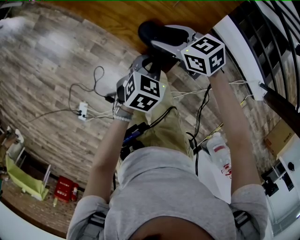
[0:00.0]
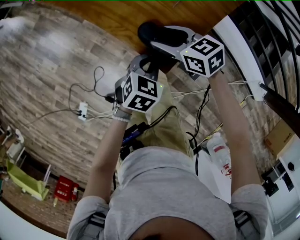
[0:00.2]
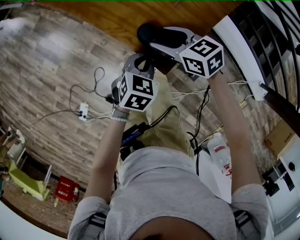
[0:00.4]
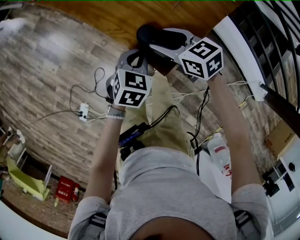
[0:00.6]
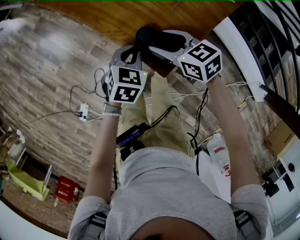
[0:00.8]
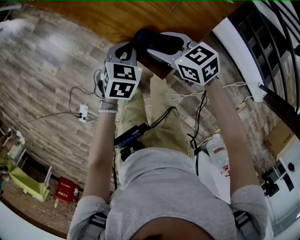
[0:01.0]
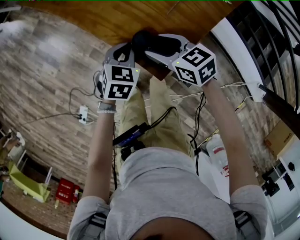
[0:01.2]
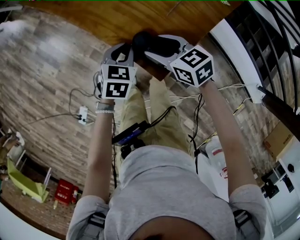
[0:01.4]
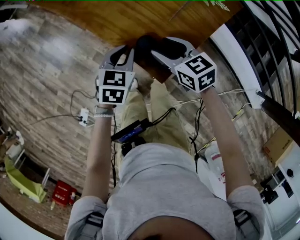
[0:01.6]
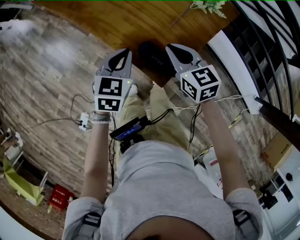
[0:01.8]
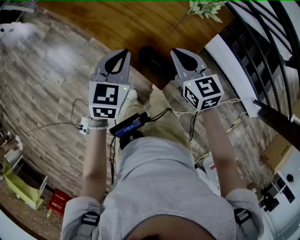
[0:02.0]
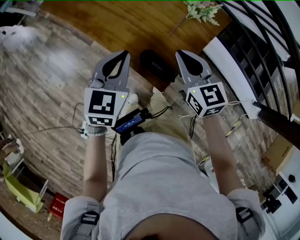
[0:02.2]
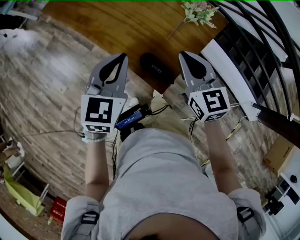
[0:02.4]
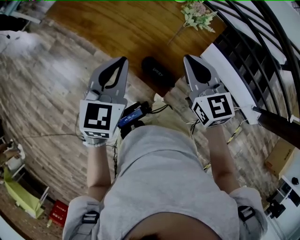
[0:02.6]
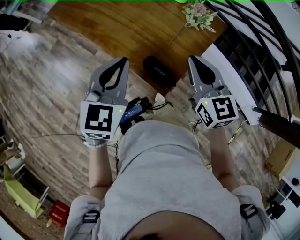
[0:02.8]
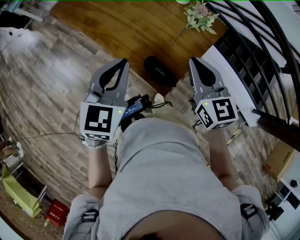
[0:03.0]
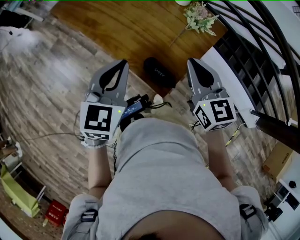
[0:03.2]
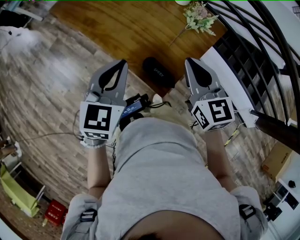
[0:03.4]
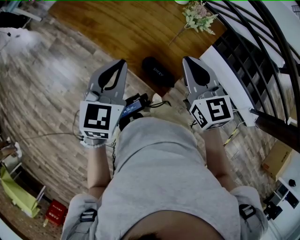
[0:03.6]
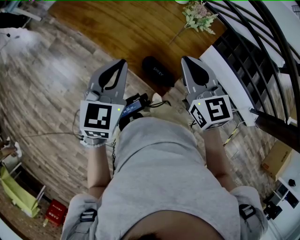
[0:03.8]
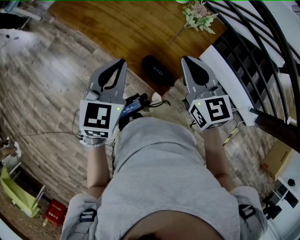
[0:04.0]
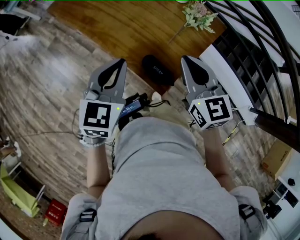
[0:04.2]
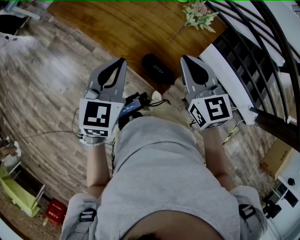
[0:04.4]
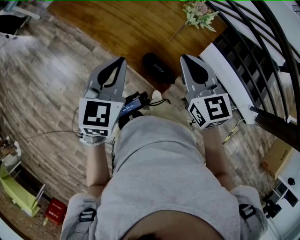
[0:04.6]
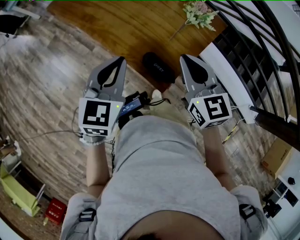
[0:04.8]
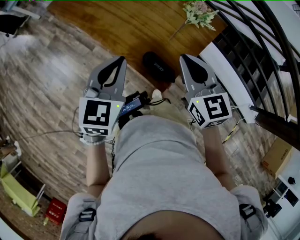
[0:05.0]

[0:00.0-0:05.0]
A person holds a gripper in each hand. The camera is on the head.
0:00.0 to 0:01.6: The left gripper moves forward and to the left, some 10 cm.
0:01.6 to 0:03.4: Both grippers move upward, some 20 cm. The left gripper swivels approximately 20 degrees. Meanwhile the right gripper changes its angle by about 30 degrees, and closes its fingers.
0:03.4 to 0:05.0: There are only small adjustments of the grippers.

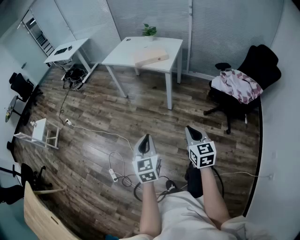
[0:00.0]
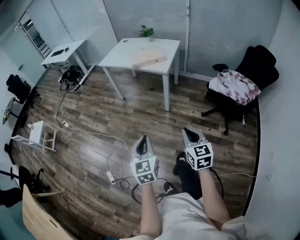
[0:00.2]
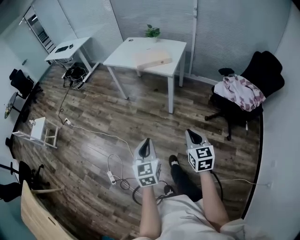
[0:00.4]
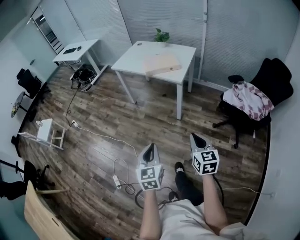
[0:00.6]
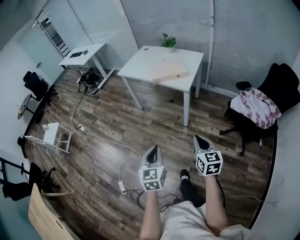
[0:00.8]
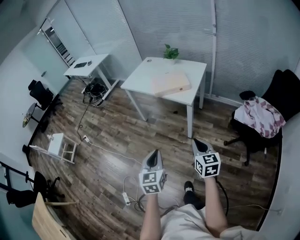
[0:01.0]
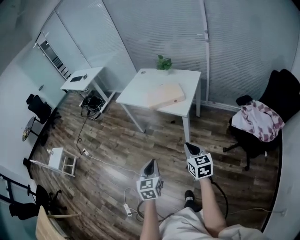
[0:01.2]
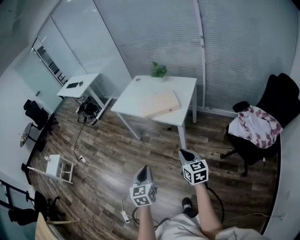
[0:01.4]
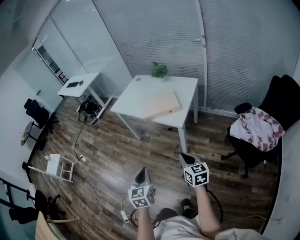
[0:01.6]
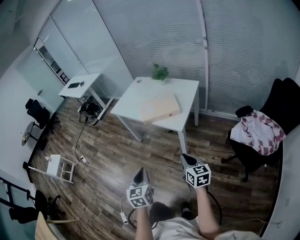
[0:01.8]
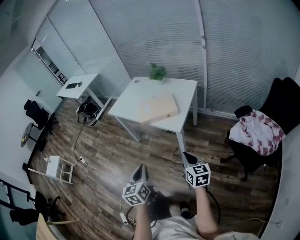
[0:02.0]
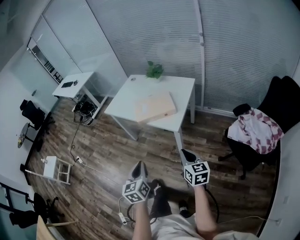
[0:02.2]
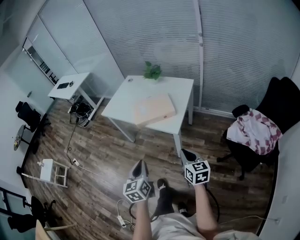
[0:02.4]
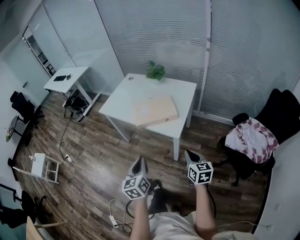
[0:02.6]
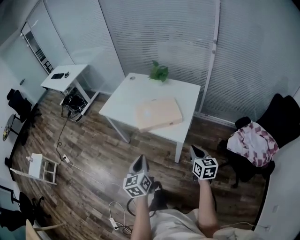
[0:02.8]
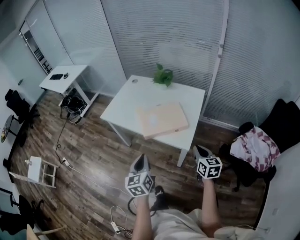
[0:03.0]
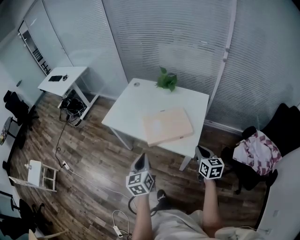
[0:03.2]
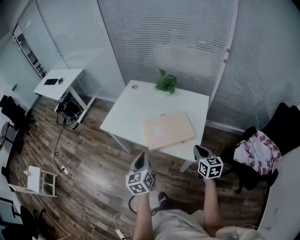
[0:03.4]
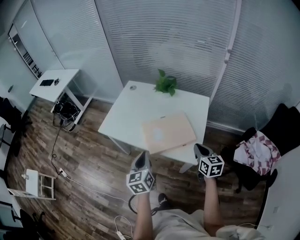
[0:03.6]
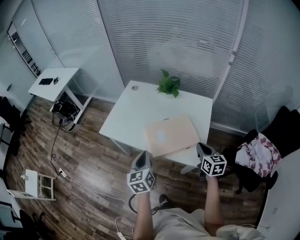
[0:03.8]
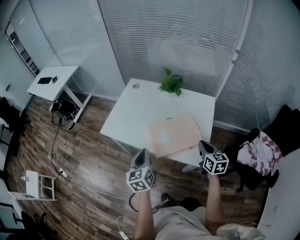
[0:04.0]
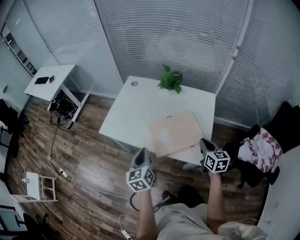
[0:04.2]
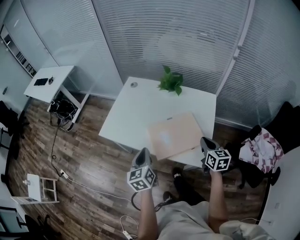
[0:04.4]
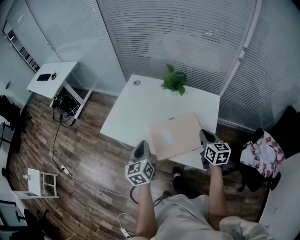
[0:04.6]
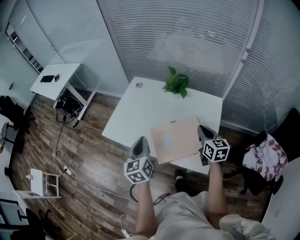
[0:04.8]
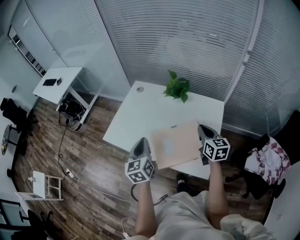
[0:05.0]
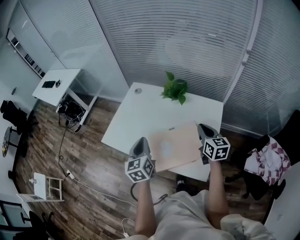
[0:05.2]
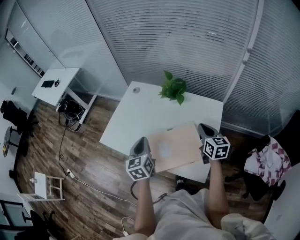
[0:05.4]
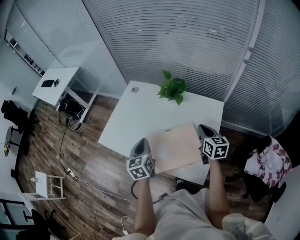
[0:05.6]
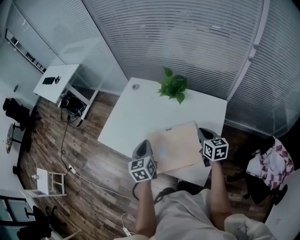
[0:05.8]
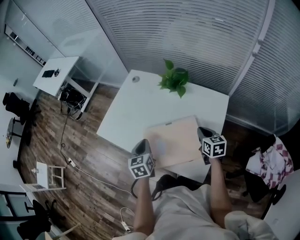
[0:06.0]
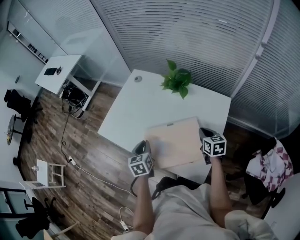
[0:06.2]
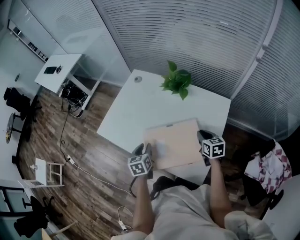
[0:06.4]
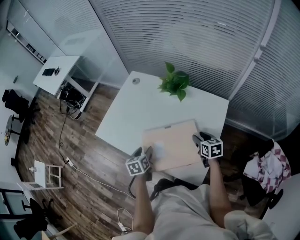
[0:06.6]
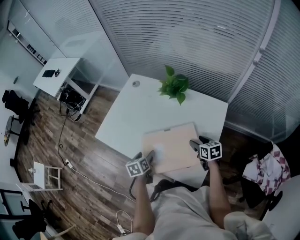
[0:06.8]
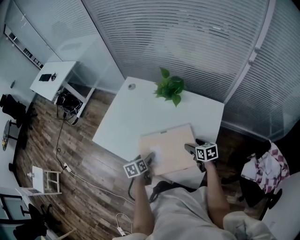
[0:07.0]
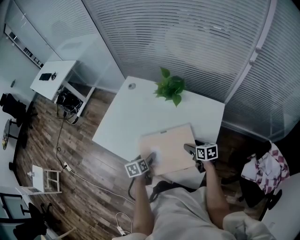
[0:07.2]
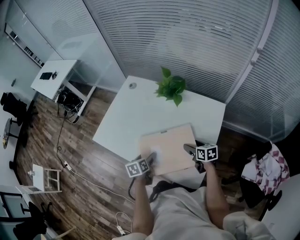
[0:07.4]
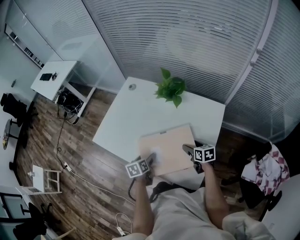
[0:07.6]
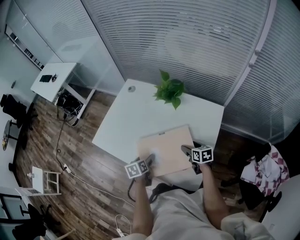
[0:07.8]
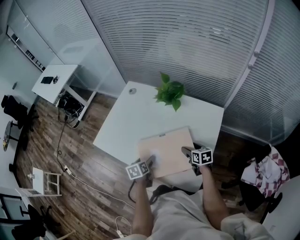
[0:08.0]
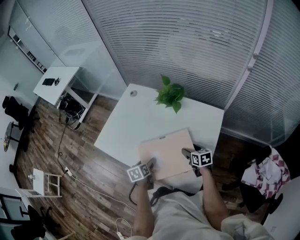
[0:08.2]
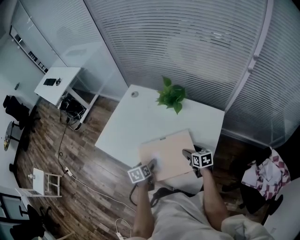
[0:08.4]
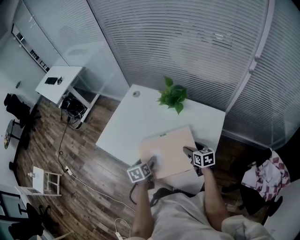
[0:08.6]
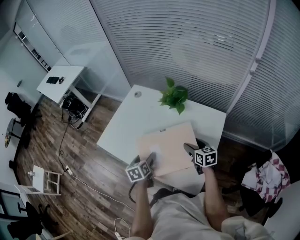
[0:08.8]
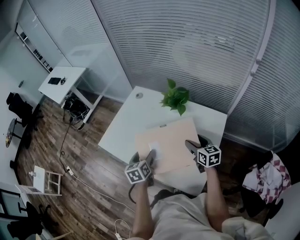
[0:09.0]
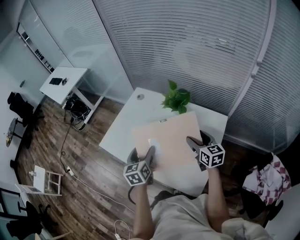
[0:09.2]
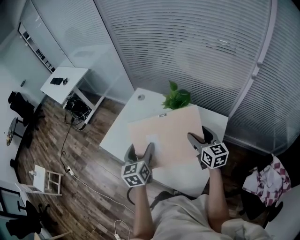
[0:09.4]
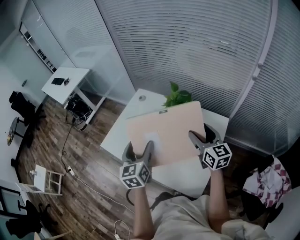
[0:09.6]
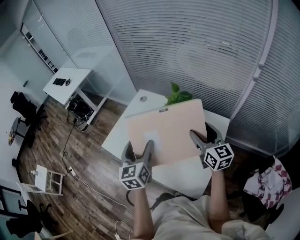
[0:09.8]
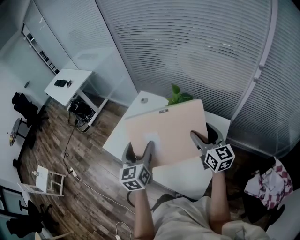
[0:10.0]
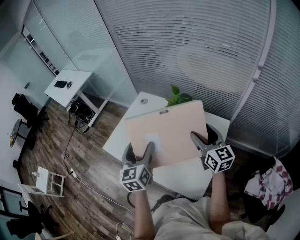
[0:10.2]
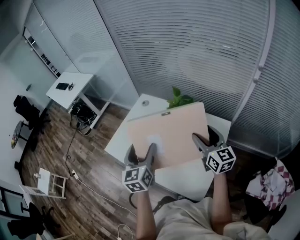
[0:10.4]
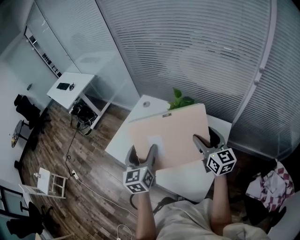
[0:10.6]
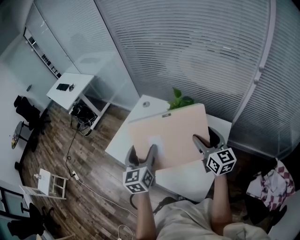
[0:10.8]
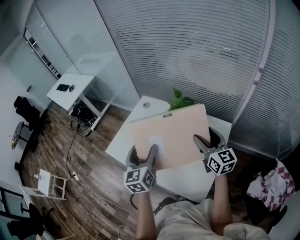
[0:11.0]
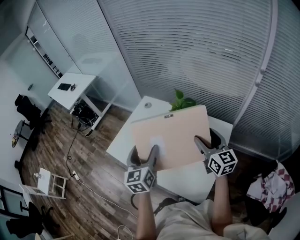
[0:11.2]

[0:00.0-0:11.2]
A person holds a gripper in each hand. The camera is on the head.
0:00.0 to 0:01.6: The grippers both shift forward by roughly 30 cm.
0:01.6 to 0:03.2: Both grippers move forward, about 30 cm.
0:03.2 to 0:04.8: The two grippers go some 25 cm forward.
0:04.8 to 0:06.4: The left gripper goes some 20 cm downward, rotates roughly 20 degrees, and opens up; the right gripper goes some 20 cm downward, to the right and forward.
0:06.4 to 0:08.0: The grippers both shift downward by about 5 cm. The right gripper opens its fingers. The left gripper opens its fingers.
0:08.0 to 0:09.6: Both grippers move upward, about 25 cm. The left gripper points its fingers approximately 30 degrees further upward; the right gripper tilts its fingers about 30 degrees upward.
0:09.6 to 0:11.2: There are only small adjustments of the grippers.

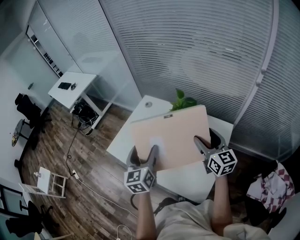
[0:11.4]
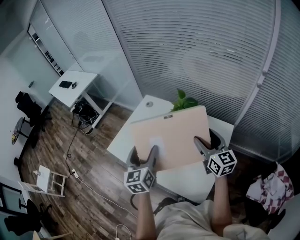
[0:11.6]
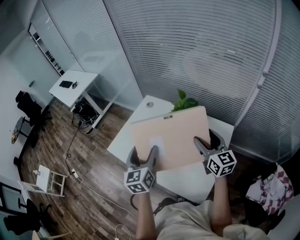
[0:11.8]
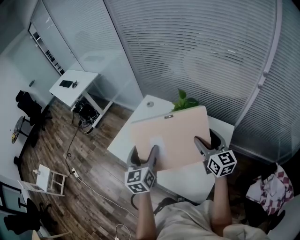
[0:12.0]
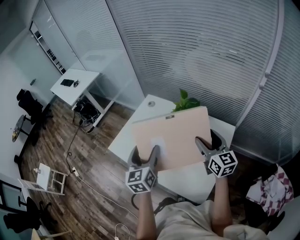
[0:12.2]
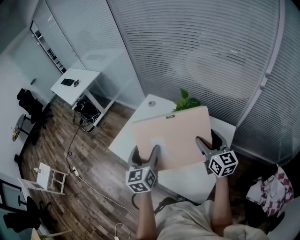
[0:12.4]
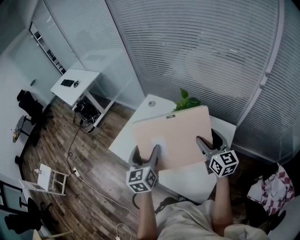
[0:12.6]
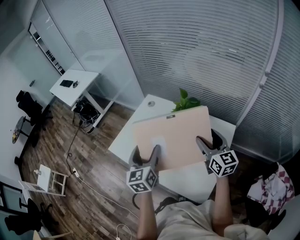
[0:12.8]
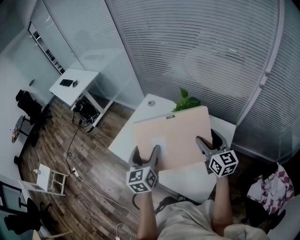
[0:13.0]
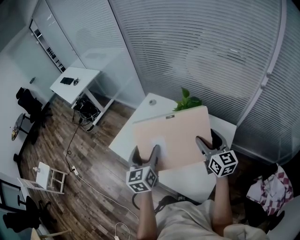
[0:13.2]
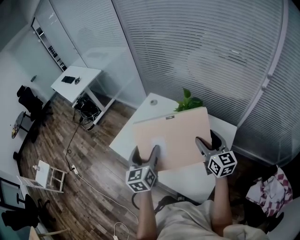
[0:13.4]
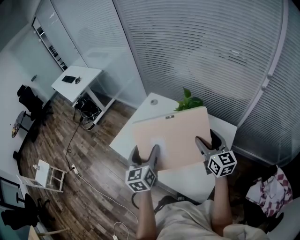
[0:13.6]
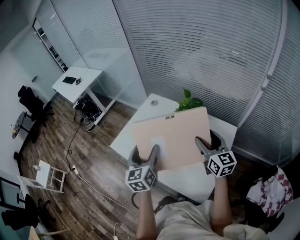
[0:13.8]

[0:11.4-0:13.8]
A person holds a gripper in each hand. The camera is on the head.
0:11.4 to 0:12.6: Both grippers stay put.
0:12.6 to 0:13.8: The grippers make only small movements.

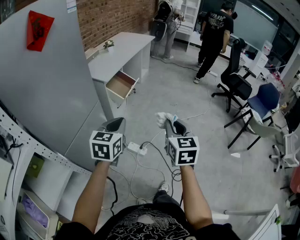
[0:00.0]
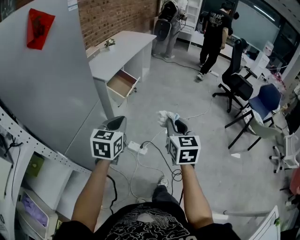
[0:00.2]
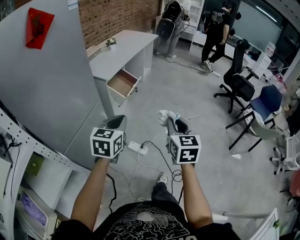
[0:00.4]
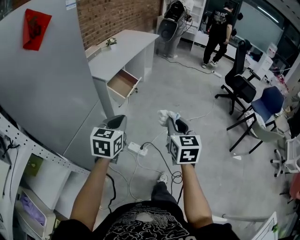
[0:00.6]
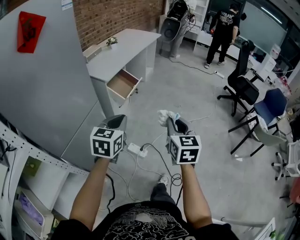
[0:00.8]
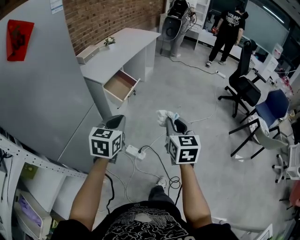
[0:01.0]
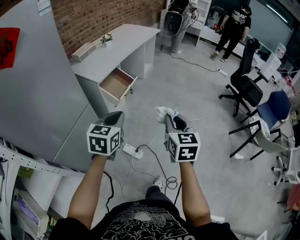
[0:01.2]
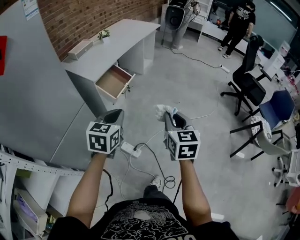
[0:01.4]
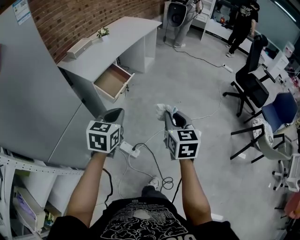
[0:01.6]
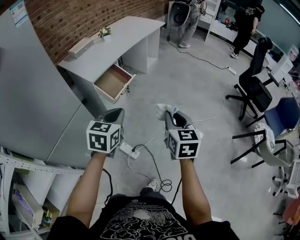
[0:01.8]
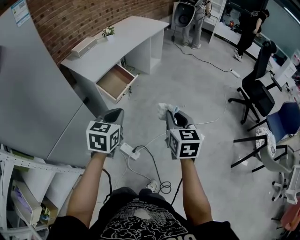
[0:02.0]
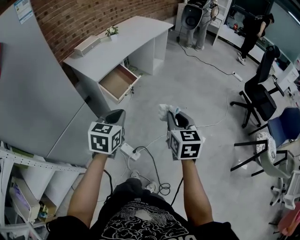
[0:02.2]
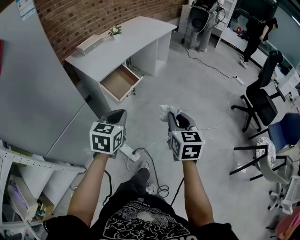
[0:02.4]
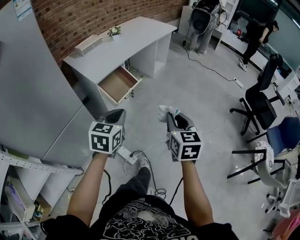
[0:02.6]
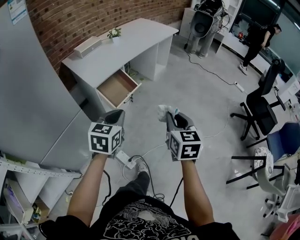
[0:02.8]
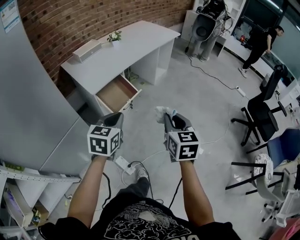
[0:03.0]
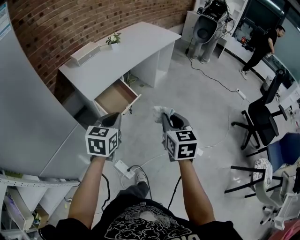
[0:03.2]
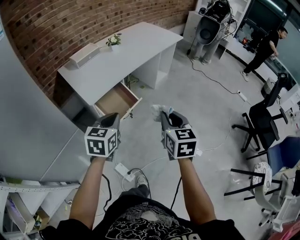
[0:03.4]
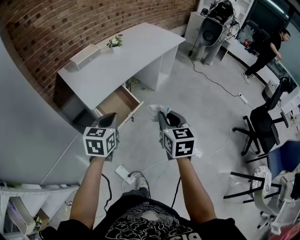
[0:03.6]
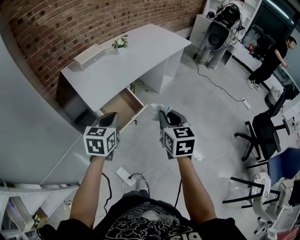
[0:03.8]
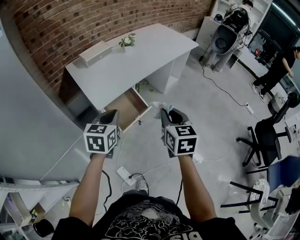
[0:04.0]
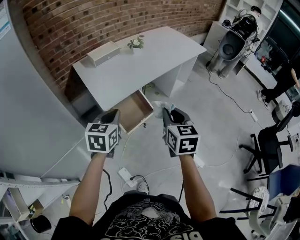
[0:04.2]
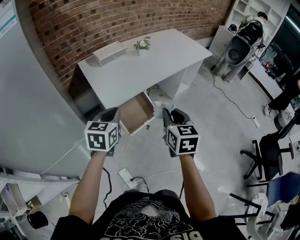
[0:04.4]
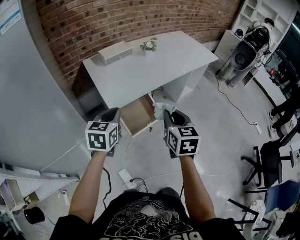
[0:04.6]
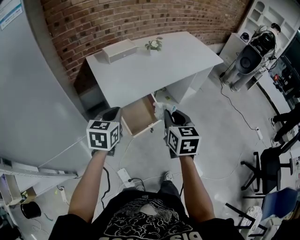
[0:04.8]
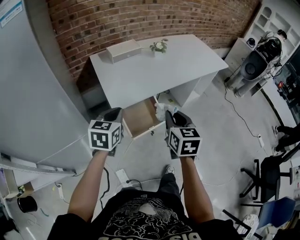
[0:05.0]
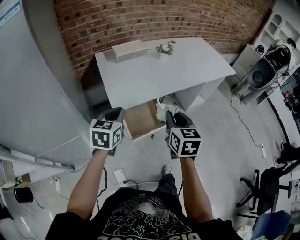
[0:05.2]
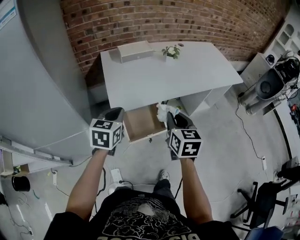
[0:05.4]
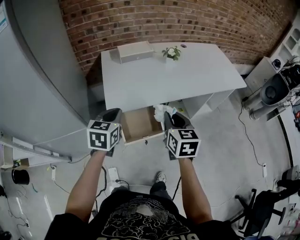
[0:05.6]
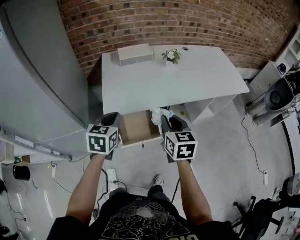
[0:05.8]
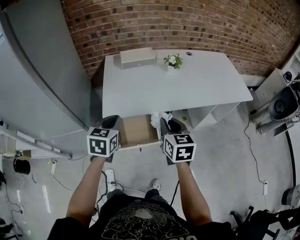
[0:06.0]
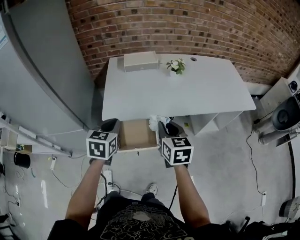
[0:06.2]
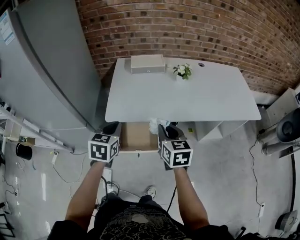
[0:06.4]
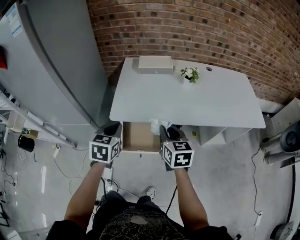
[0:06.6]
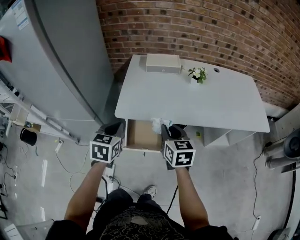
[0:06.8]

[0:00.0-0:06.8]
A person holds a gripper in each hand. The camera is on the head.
0:00.0 to 0:01.4: The grippers both shift forward and to the right by about 20 cm.
0:01.4 to 0:02.8: The grippers both shift forward by approximately 15 cm.
0:02.8 to 0:04.0: The left gripper is displaced forward and to the left by approximately 20 cm; the right gripper is displaced forward by roughly 25 cm.
0:04.0 to 0:05.4: The right gripper heads forward, covering about 15 cm, and rotates roughly 20 degrees; the left gripper travels forward by some 10 cm, and turns by approximately 20 degrees.
0:05.4 to 0:06.8: The left gripper swivels some 30 degrees, while the right gripper ends up about 10 cm from where it was, and changes its angle by about 30 degrees.
